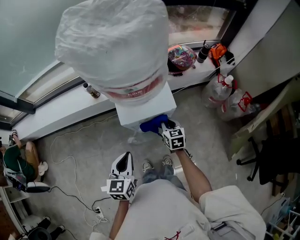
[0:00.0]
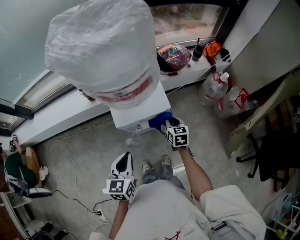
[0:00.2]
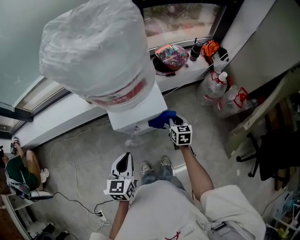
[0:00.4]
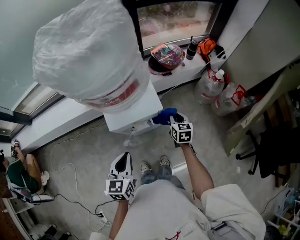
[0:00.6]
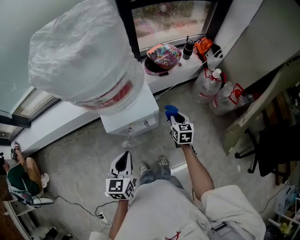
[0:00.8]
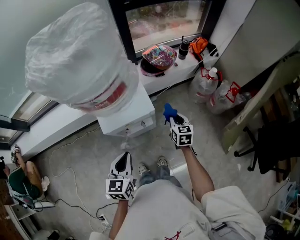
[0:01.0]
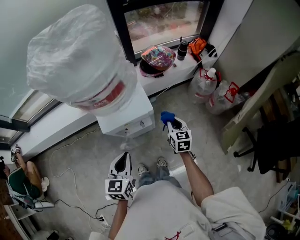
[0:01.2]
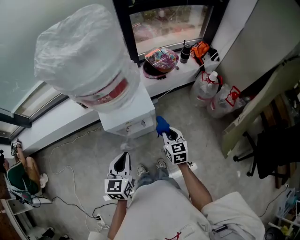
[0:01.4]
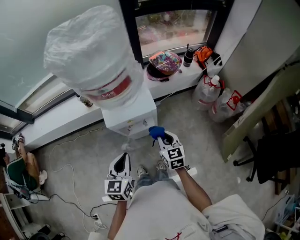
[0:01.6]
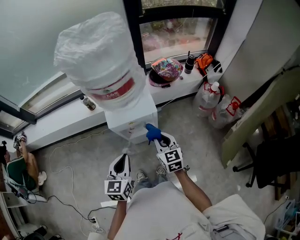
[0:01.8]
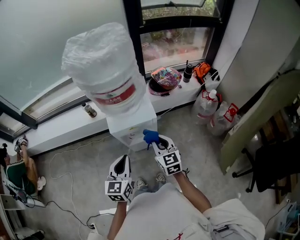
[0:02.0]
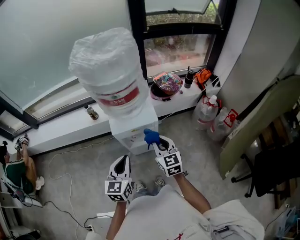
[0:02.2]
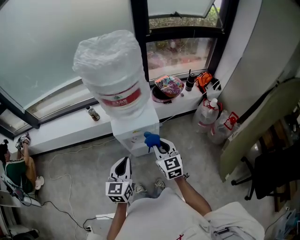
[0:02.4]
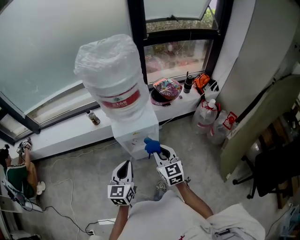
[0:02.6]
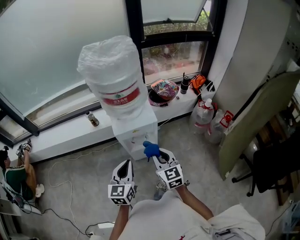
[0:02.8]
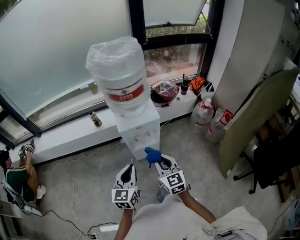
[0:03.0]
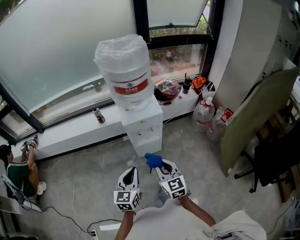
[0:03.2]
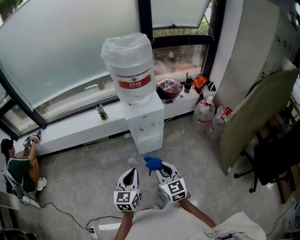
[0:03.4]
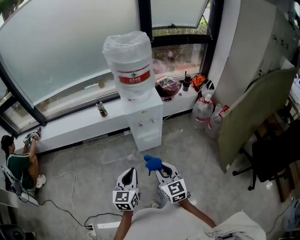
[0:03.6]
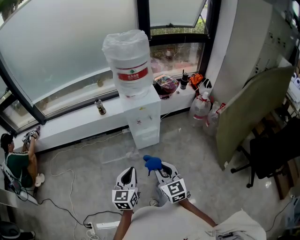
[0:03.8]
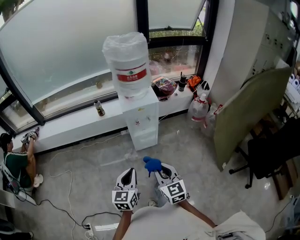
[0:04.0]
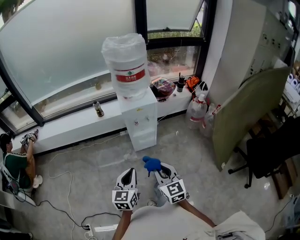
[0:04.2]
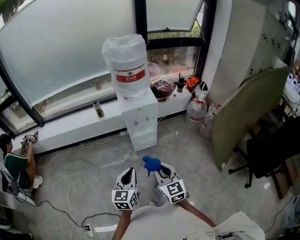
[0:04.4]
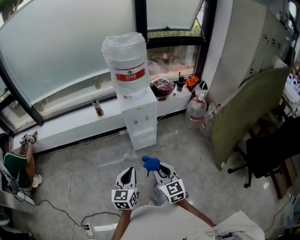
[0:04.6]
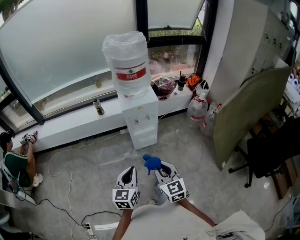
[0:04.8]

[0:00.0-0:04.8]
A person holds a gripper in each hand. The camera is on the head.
0:00.0 to 0:01.6: The right gripper is displaced backward, upward and to the right by about 15 cm, while the left gripper is displaced to the right by about 10 cm.
0:01.6 to 0:03.2: The right gripper is displaced backward, upward and to the left by roughly 30 cm; the left gripper is displaced backward by roughly 15 cm.
0:03.2 to 0:04.8: Both grippers move backward, approximately 15 cm.

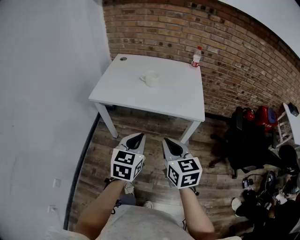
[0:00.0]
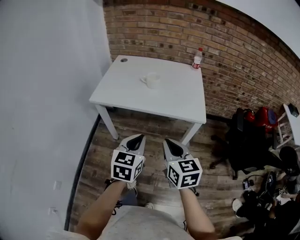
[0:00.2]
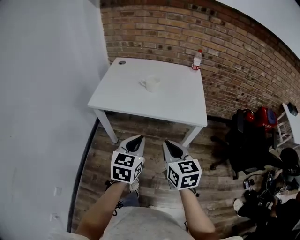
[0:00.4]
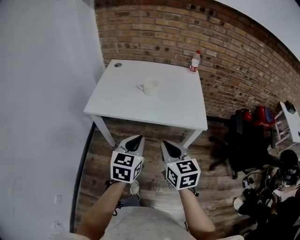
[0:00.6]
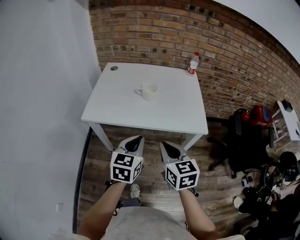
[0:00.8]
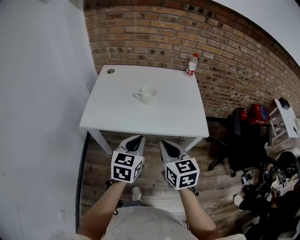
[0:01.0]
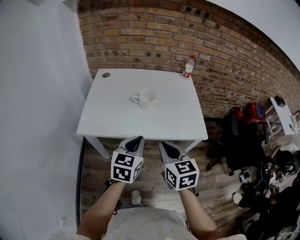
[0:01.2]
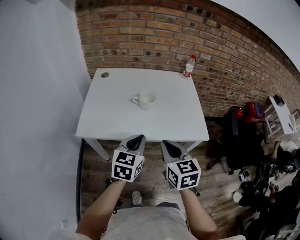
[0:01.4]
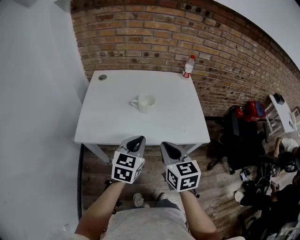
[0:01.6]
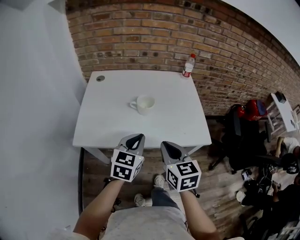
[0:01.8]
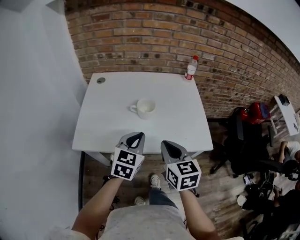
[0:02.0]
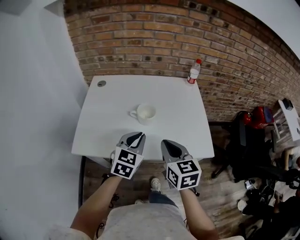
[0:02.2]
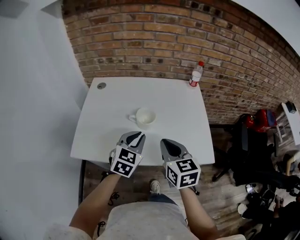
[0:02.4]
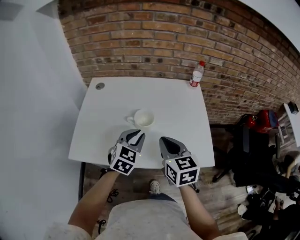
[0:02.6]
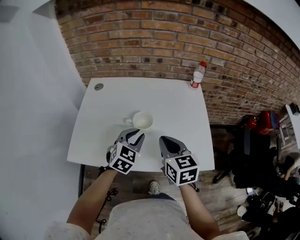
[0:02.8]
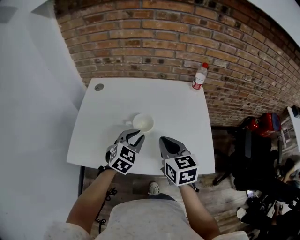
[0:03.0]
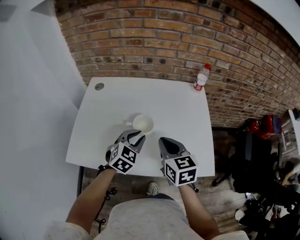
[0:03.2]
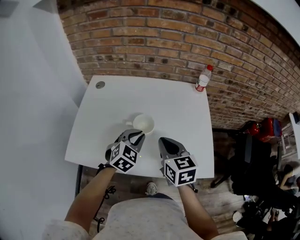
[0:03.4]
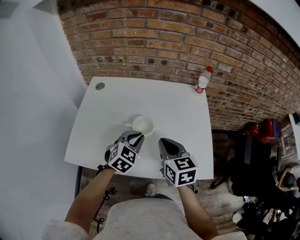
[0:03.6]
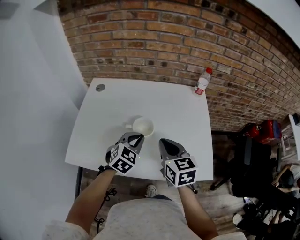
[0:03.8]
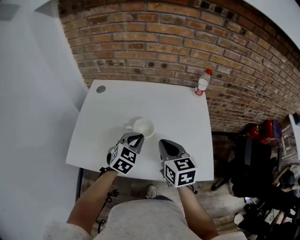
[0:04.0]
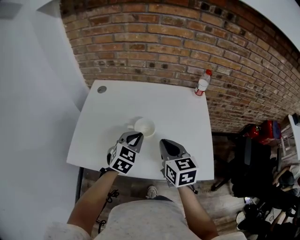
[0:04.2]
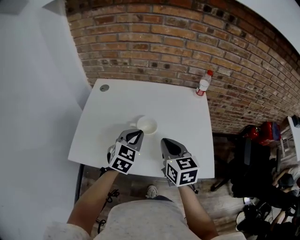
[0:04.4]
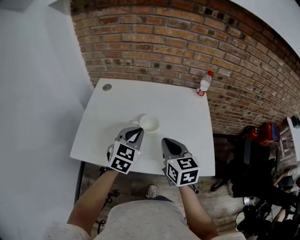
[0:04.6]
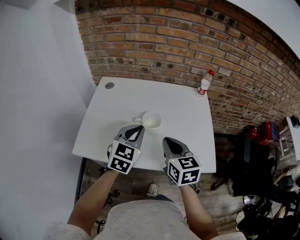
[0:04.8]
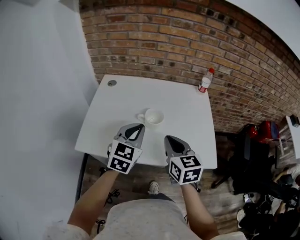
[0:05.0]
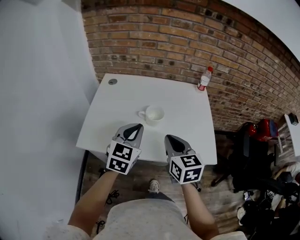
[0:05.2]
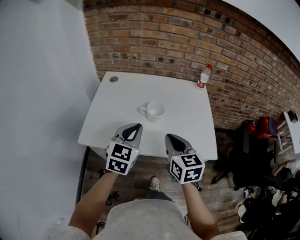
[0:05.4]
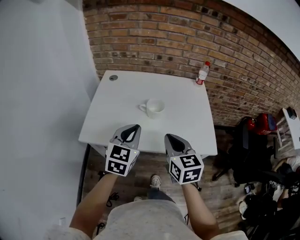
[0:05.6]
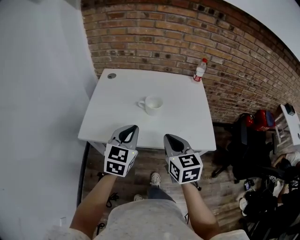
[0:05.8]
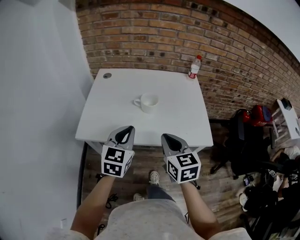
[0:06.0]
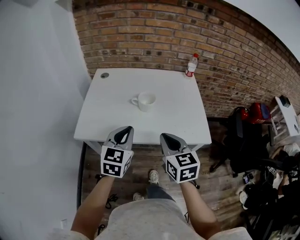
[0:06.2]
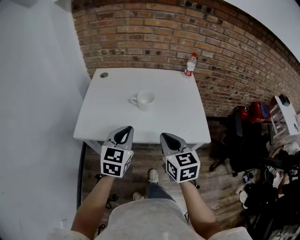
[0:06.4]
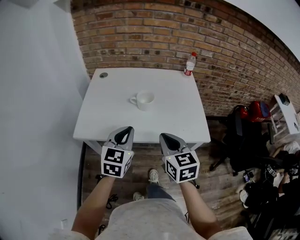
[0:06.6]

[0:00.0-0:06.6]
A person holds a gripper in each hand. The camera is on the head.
0:00.0 to 0:01.6: The right gripper heads forward and to the left, covering about 25 cm. The left gripper heads forward, covering some 25 cm.
0:01.6 to 0:03.2: Both grippers travel together forward, some 25 cm. The left gripper swivels roughly 30 degrees.
0:03.2 to 0:05.0: The right gripper moves backward, approximately 5 cm. Meanwhile the left gripper travels upward, backward and to the left by roughly 15 cm, and swivels approximately 20 degrees.
0:05.0 to 0:06.6: Both grippers move backward, some 15 cm.

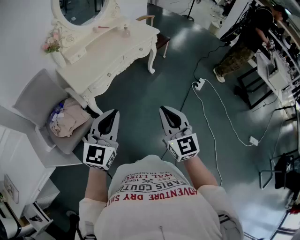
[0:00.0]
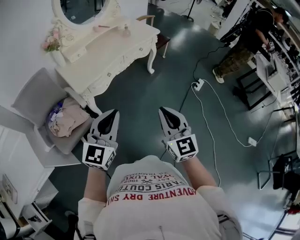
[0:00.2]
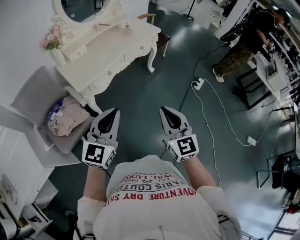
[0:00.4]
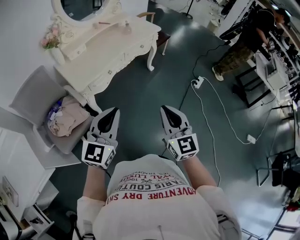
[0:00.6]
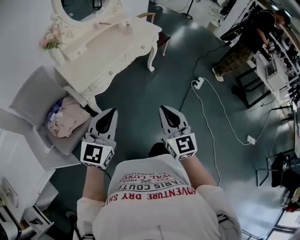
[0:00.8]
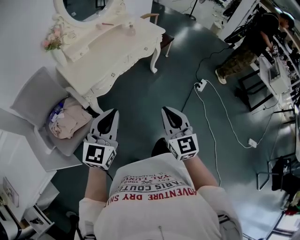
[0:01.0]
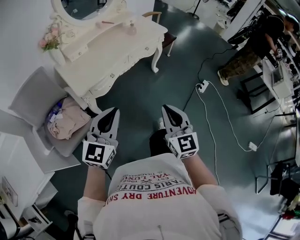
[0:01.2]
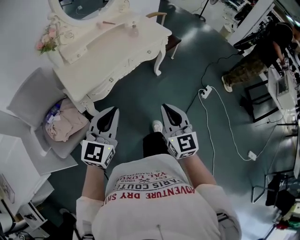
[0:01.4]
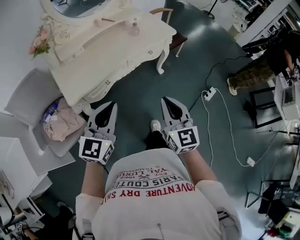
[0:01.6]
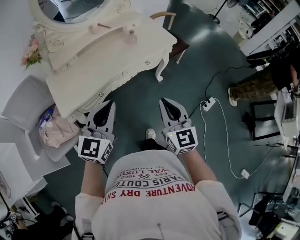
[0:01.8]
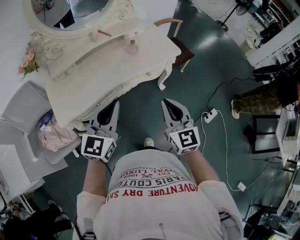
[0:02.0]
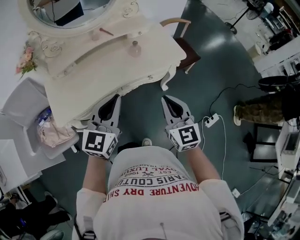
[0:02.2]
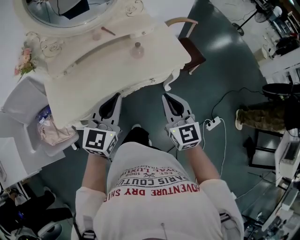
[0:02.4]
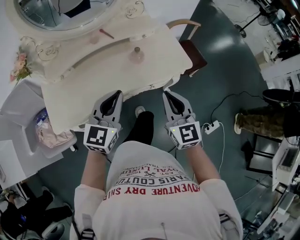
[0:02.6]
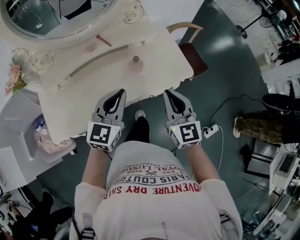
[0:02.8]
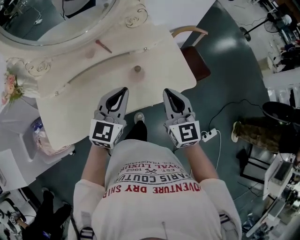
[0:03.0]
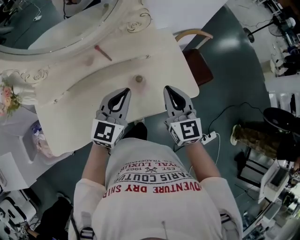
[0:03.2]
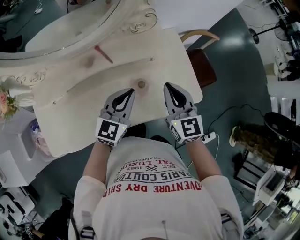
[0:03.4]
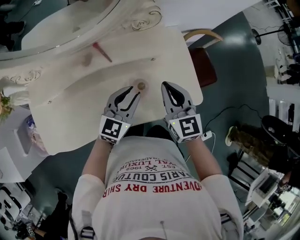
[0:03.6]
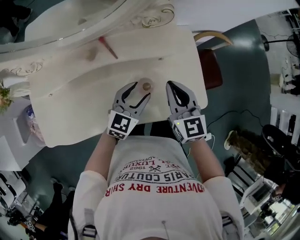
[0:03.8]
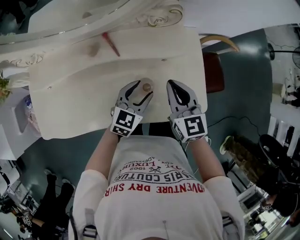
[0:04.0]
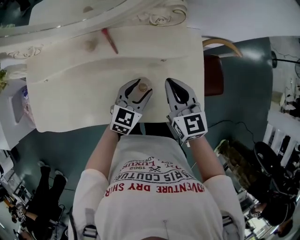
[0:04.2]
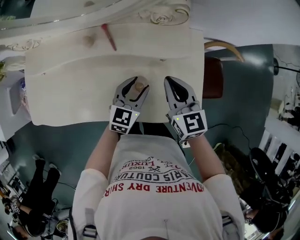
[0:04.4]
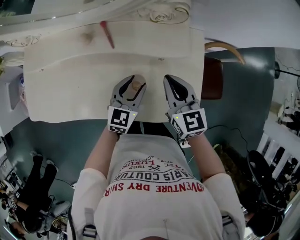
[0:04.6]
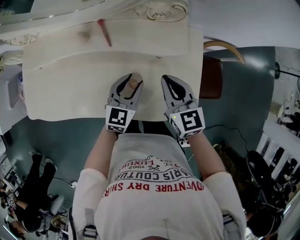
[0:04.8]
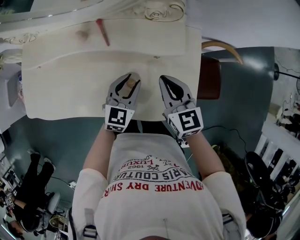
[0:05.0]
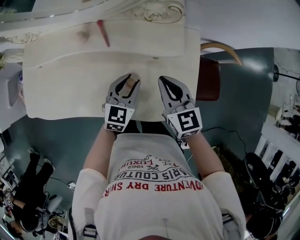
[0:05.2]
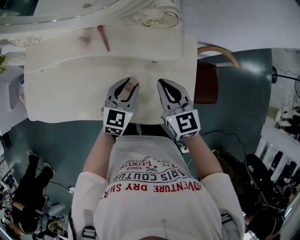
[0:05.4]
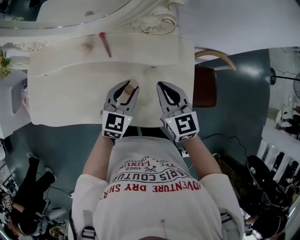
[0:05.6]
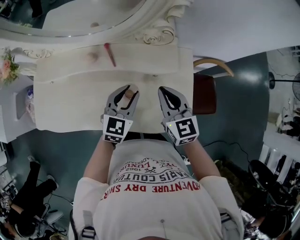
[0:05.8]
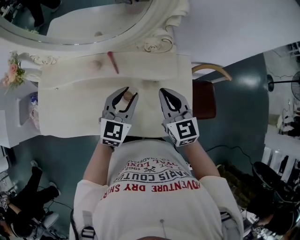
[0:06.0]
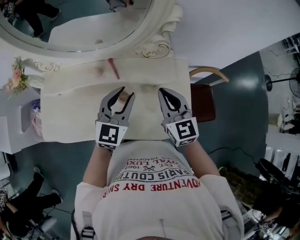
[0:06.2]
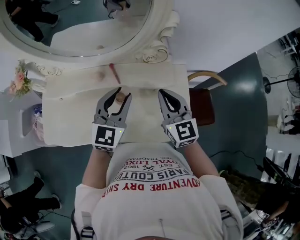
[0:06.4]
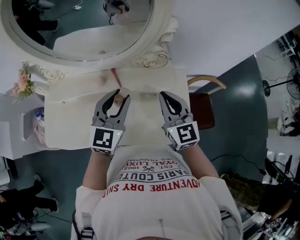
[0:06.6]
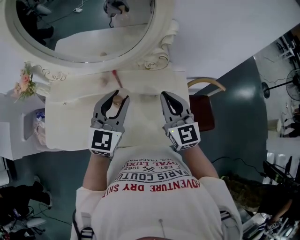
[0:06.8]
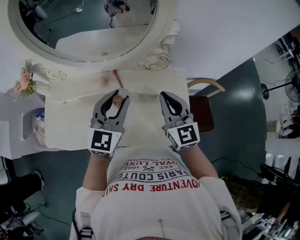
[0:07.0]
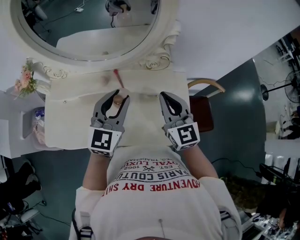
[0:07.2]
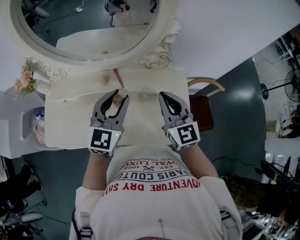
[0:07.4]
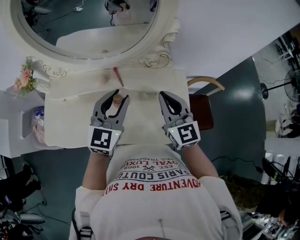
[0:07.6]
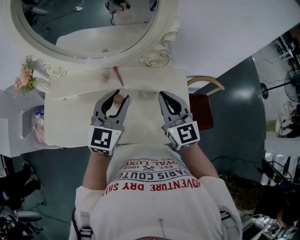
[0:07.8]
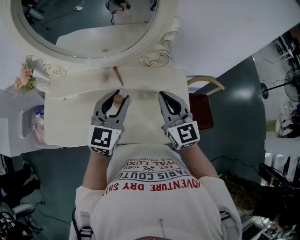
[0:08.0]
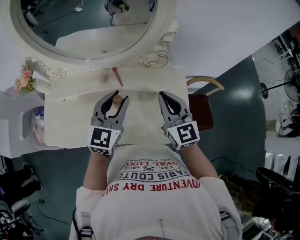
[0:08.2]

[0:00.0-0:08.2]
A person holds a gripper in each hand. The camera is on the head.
0:00.0 to 0:01.6: Both grippers travel together forward, about 25 cm.
0:01.6 to 0:03.2: Both grippers are carried forward, roughly 60 cm.
0:03.2 to 0:05.0: The right gripper moves about 15 cm, and changes its angle by some 30 degrees. Meanwhile the left gripper heads downward, covering about 15 cm, swivels about 30 degrees, and opens up.
0:05.0 to 0:06.6: The left gripper shifts about 25 cm upward; the right gripper is displaced upward by roughly 15 cm, and rotates about 20 degrees.
0:06.6 to 0:08.2: The grippers make only small movements.

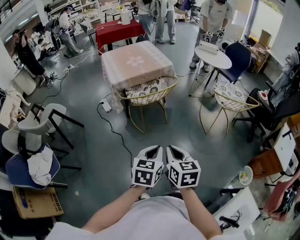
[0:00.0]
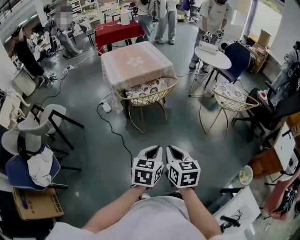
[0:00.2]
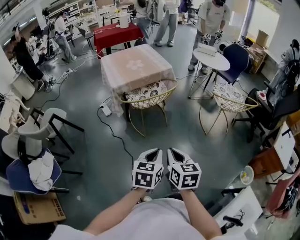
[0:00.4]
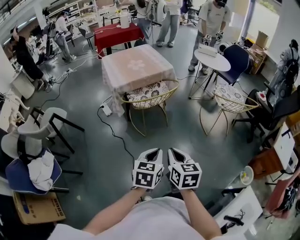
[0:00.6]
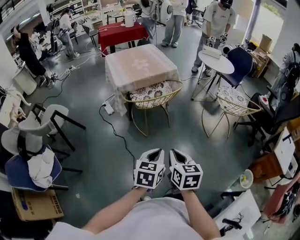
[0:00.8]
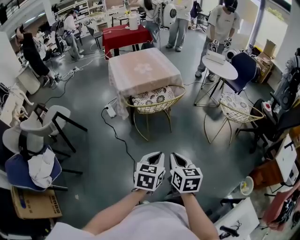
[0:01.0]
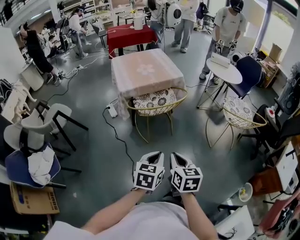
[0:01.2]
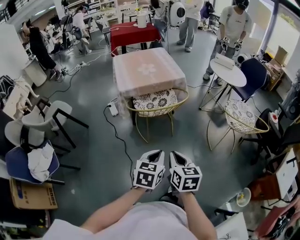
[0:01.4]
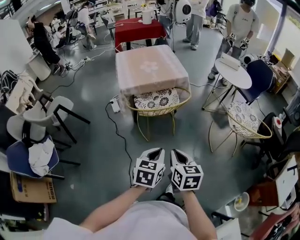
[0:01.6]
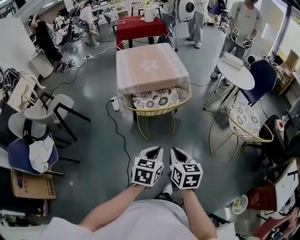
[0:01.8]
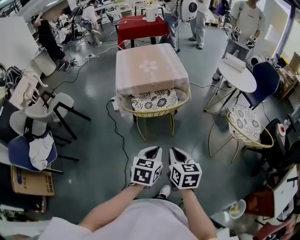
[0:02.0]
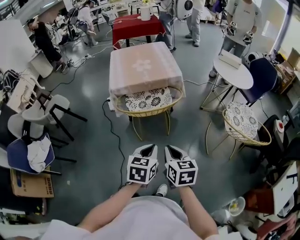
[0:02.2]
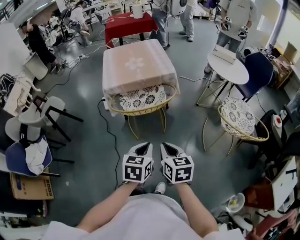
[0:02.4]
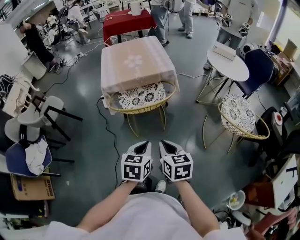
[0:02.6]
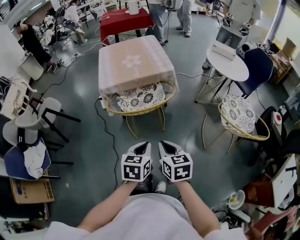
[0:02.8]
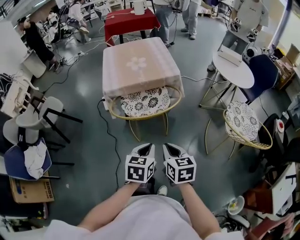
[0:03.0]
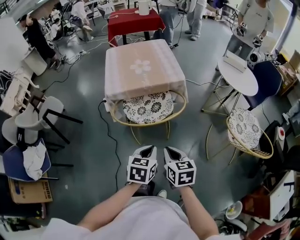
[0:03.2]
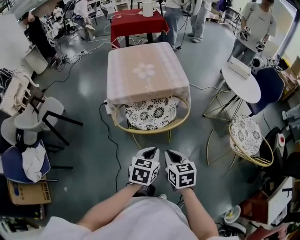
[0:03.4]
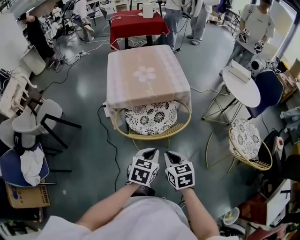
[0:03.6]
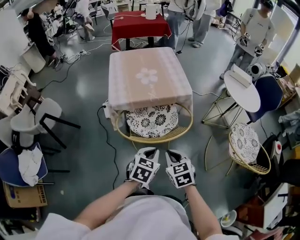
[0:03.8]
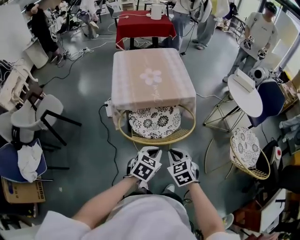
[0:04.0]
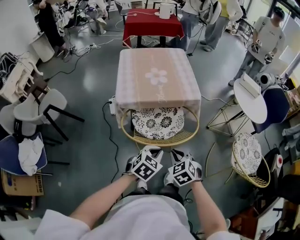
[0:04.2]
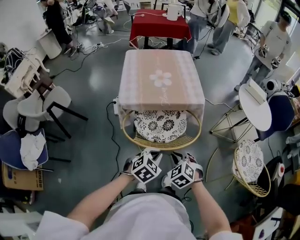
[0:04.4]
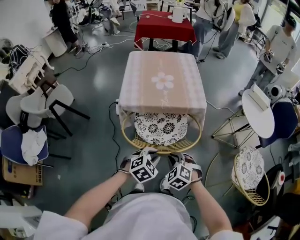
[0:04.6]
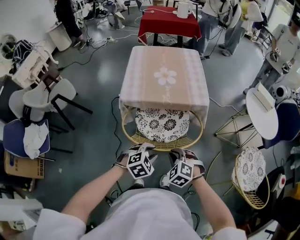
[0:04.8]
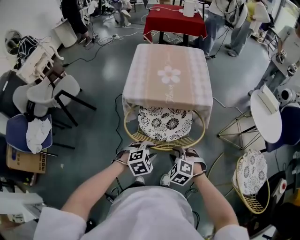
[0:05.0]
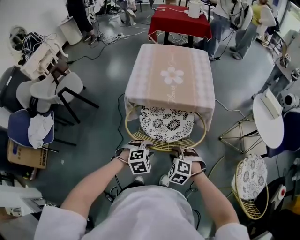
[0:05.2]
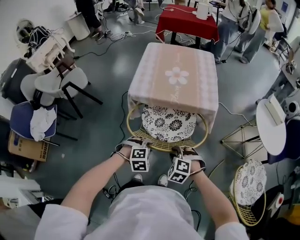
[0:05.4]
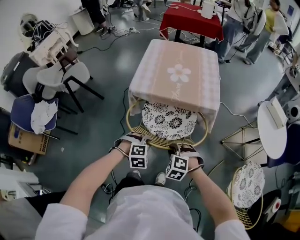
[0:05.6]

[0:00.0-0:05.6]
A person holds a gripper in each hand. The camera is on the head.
0:00.0 to 0:01.4: Both grippers move forward, about 10 cm.
0:01.4 to 0:02.8: The two grippers go about 15 cm forward and to the right.
0:02.8 to 0:04.2: The left gripper heads forward, covering some 20 cm, and changes its angle by roughly 30 degrees, while the right gripper travels forward and to the left by roughly 20 cm, and rotates around the line of its fingers by about 40 degrees, counterclockwise from behind.
0:04.2 to 0:05.6: The two grippers go approximately 10 cm downward. The left gripper swivels approximately 50 degrees, and opens. Meanwhile the right gripper rotates around the line of its fingers by about 50 degrees, counterclockwise from behind.
